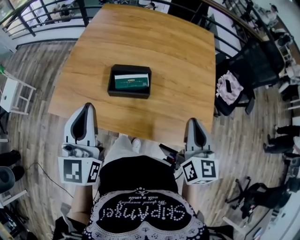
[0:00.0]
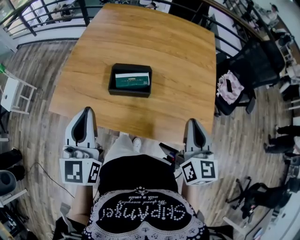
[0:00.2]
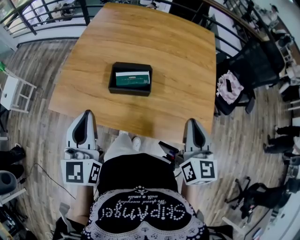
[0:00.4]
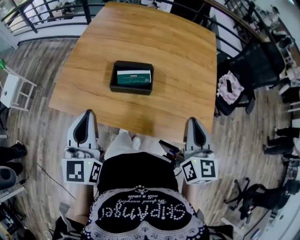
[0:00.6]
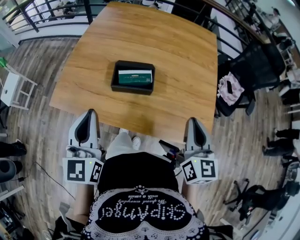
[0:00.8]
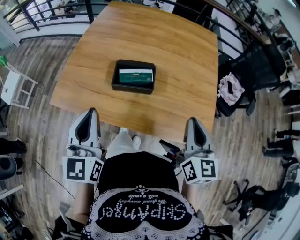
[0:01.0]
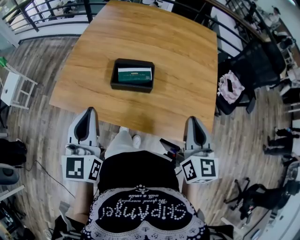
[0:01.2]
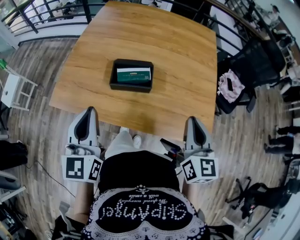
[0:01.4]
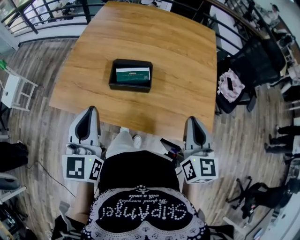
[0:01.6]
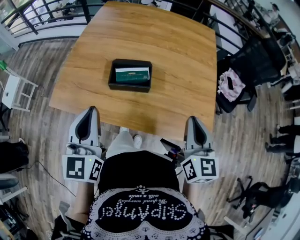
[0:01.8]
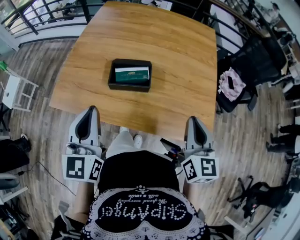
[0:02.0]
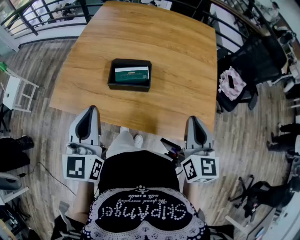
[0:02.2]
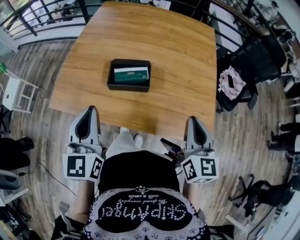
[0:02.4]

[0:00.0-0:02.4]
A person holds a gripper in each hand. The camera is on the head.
0:00.0 to 0:01.2: The left gripper ends up about 5 cm from where it was.
0:01.2 to 0:02.4: There are only small adjustments of the grippers.

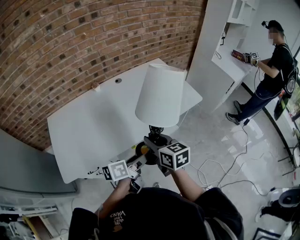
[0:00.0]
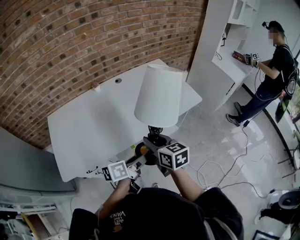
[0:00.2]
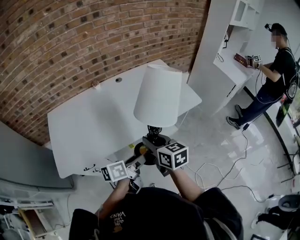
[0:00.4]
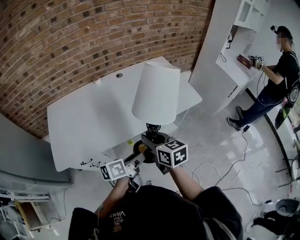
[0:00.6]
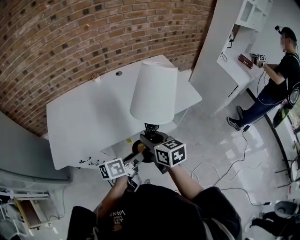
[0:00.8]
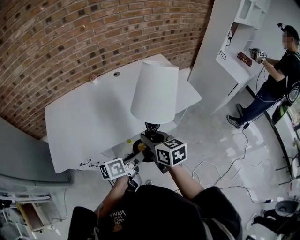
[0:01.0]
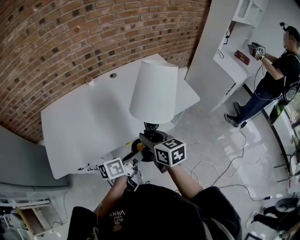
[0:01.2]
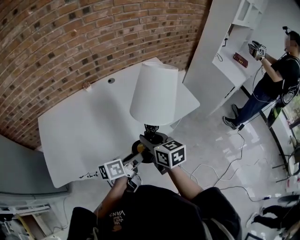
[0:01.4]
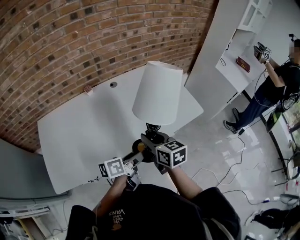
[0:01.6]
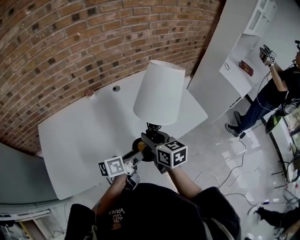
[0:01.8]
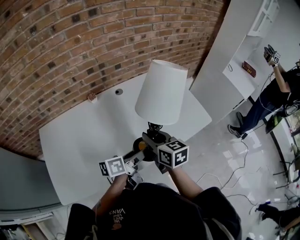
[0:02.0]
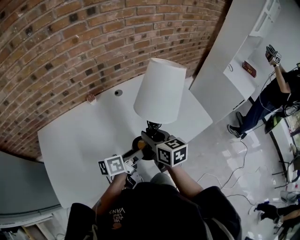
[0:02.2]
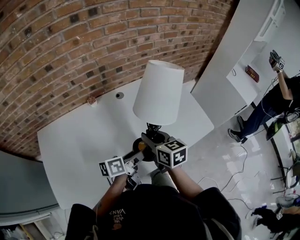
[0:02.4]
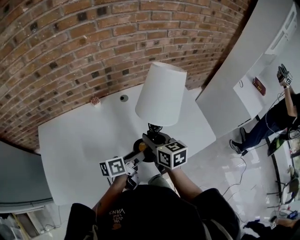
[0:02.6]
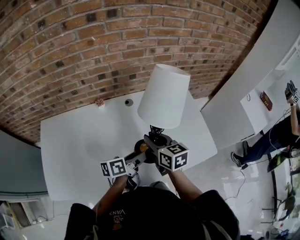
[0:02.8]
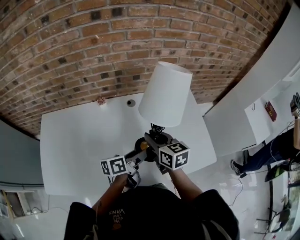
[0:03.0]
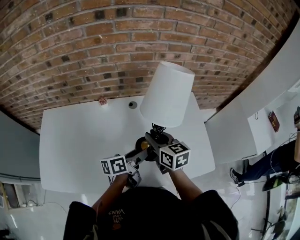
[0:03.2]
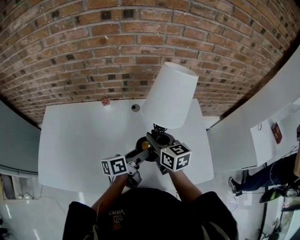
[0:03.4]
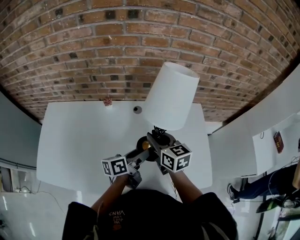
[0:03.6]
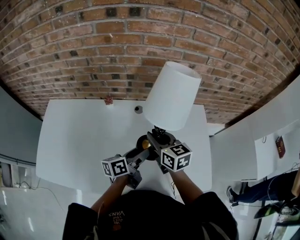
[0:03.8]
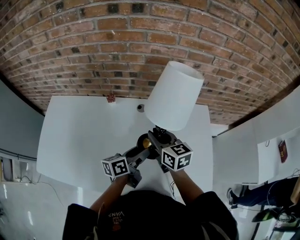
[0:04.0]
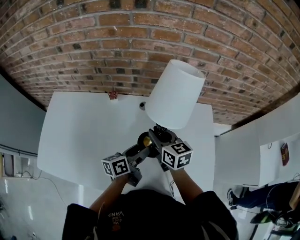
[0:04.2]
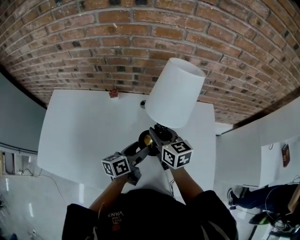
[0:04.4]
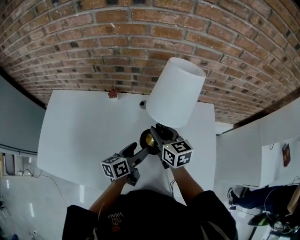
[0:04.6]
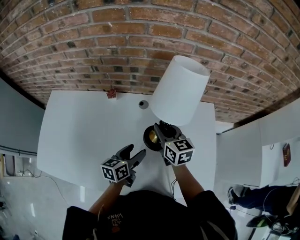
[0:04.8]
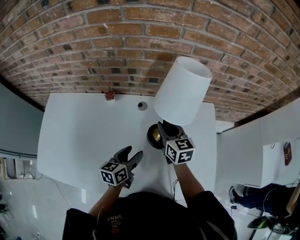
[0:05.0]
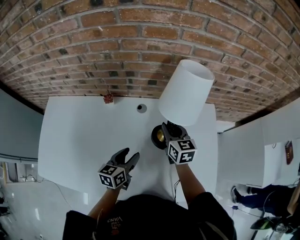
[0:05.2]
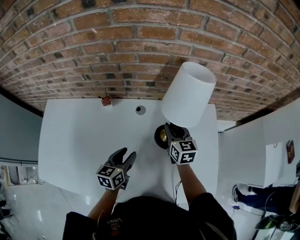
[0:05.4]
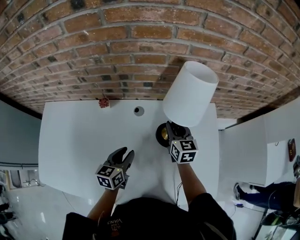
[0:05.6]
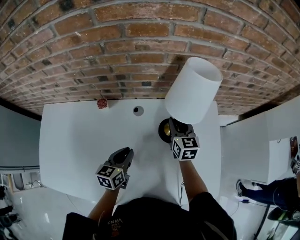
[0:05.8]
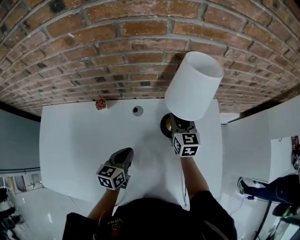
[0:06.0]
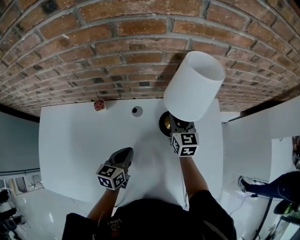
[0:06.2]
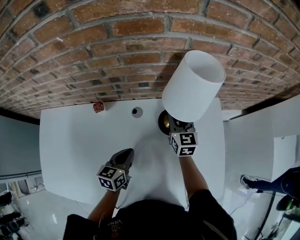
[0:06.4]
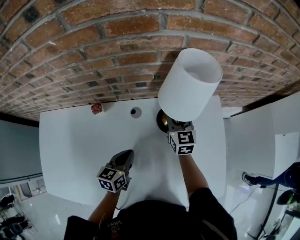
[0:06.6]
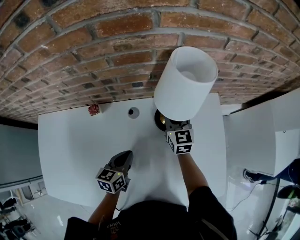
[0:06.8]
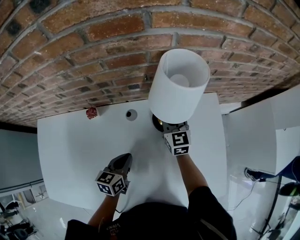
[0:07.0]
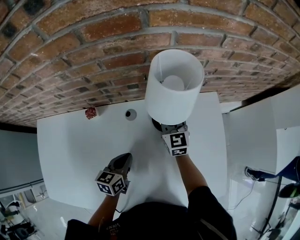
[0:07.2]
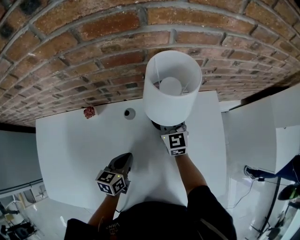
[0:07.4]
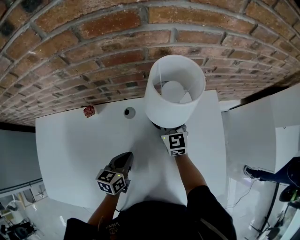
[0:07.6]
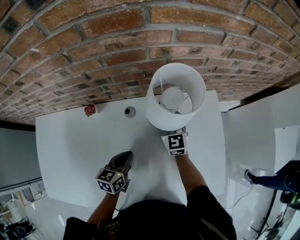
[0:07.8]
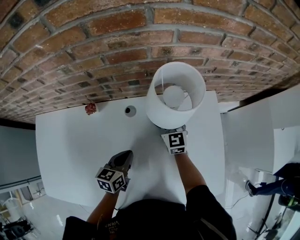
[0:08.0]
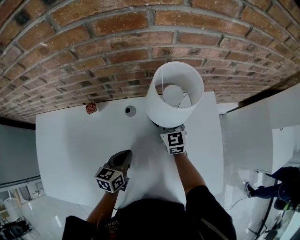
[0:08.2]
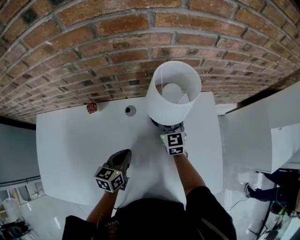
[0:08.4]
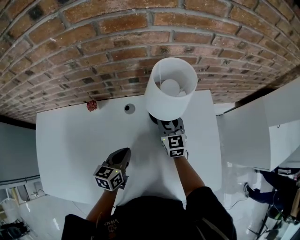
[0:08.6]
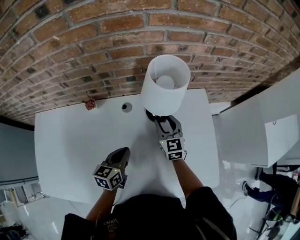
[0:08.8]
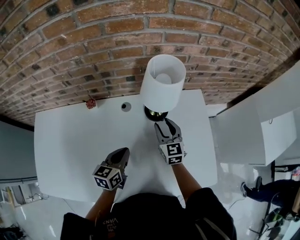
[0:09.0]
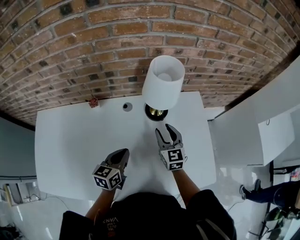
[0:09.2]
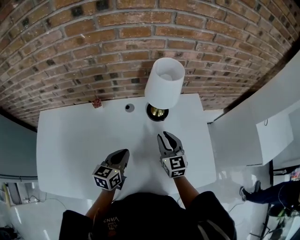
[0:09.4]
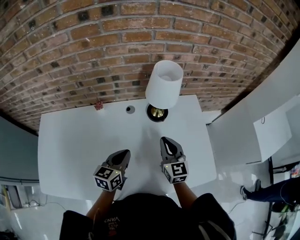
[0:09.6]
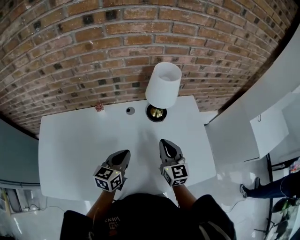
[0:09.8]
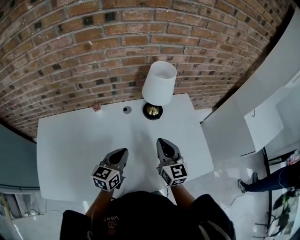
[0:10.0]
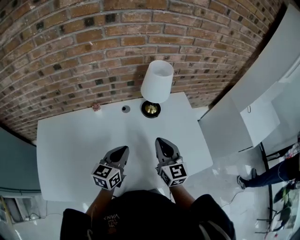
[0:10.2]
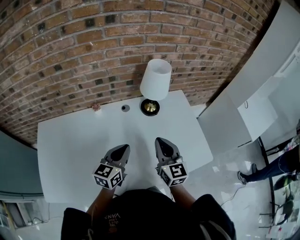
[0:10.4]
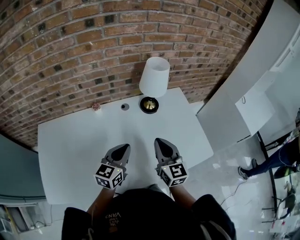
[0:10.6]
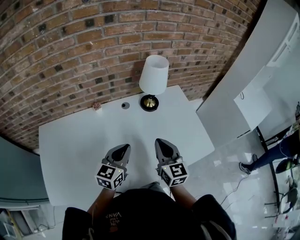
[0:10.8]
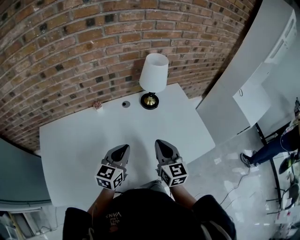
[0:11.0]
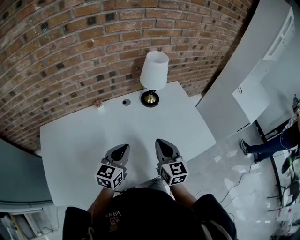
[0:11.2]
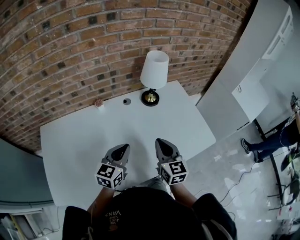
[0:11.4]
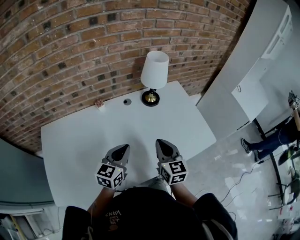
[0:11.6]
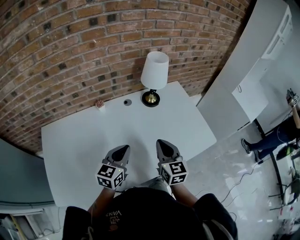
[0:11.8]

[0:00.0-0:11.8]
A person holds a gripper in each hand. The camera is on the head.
0:00.0 to 0:01.4: The grippers both shift forward by some 5 cm.
0:01.4 to 0:03.0: Both grippers travel together forward, some 30 cm.
0:03.0 to 0:04.4: The grippers both shift forward by approximately 10 cm. The left gripper turns by some 20 degrees.
0:04.4 to 0:06.0: The right gripper shifts some 20 cm forward, to the right and downward, and changes its angle by about 30 degrees. Meanwhile the left gripper heads forward and downward, covering some 10 cm, turns by some 30 degrees, and closes its fingers.
0:06.0 to 0:07.4: The grippers stay close to where they were, moving slightly.
0:07.4 to 0:08.8: The right gripper is displaced backward by roughly 10 cm. The left gripper shifts by approximately 5 cm.
0:08.8 to 0:10.4: The right gripper is displaced backward and upward by some 30 cm, and closes. Meanwhile the left gripper heads upward and backward, covering approximately 15 cm, and swivels about 20 degrees.
0:10.4 to 0:11.8: Both grippers move backward, some 10 cm.

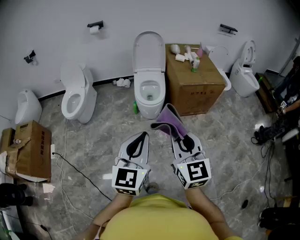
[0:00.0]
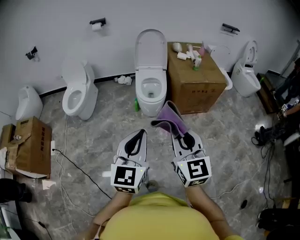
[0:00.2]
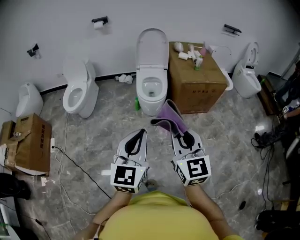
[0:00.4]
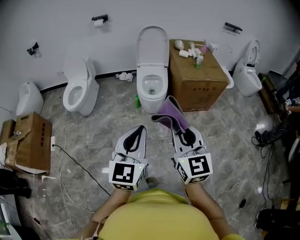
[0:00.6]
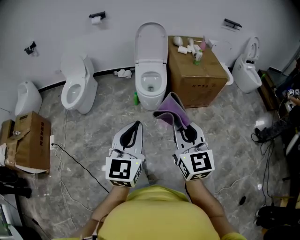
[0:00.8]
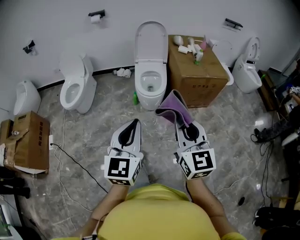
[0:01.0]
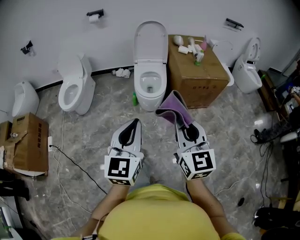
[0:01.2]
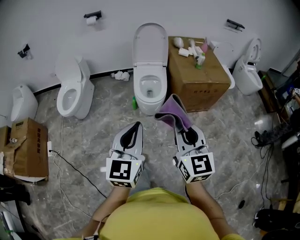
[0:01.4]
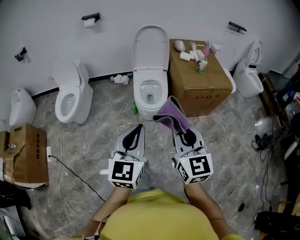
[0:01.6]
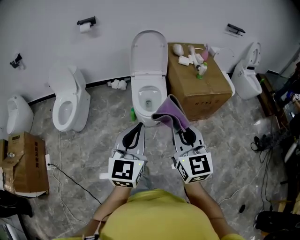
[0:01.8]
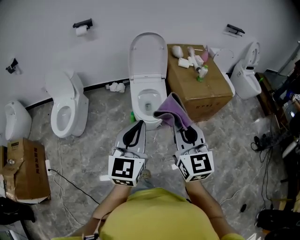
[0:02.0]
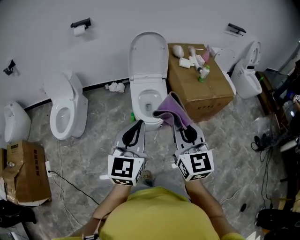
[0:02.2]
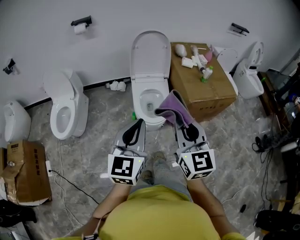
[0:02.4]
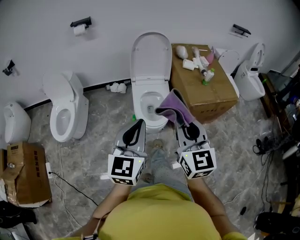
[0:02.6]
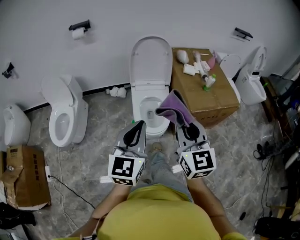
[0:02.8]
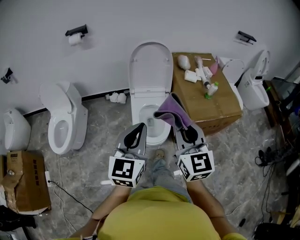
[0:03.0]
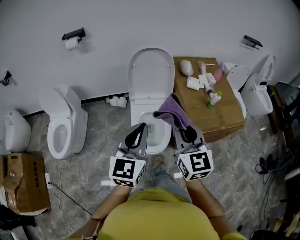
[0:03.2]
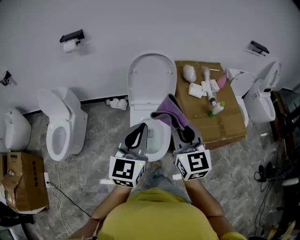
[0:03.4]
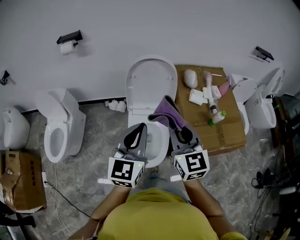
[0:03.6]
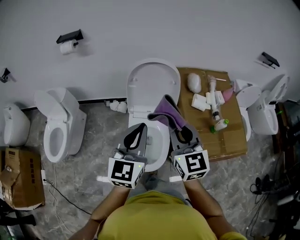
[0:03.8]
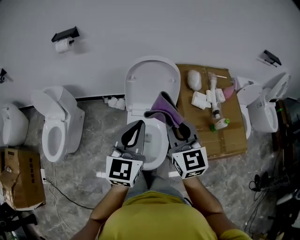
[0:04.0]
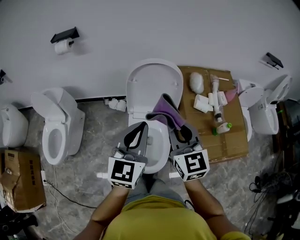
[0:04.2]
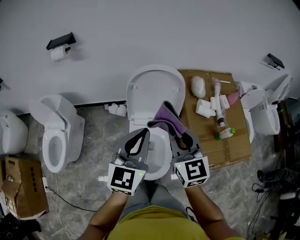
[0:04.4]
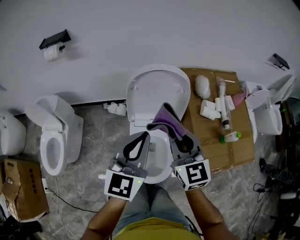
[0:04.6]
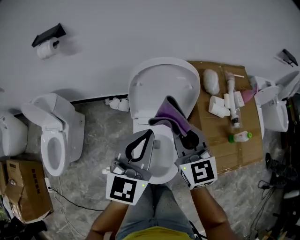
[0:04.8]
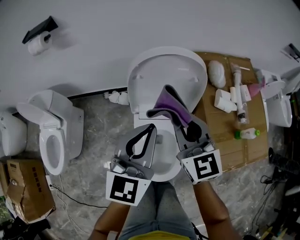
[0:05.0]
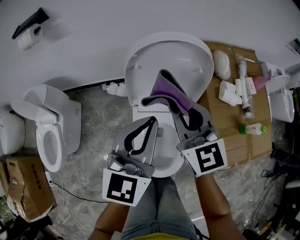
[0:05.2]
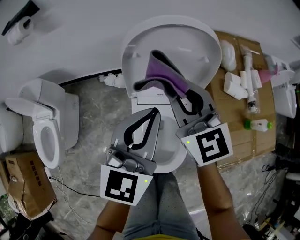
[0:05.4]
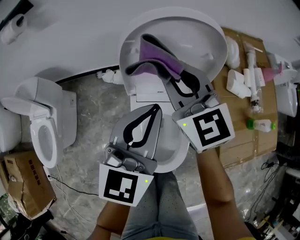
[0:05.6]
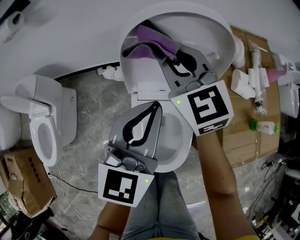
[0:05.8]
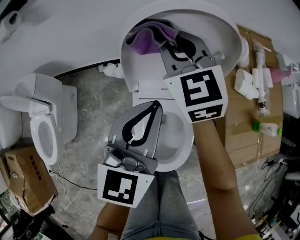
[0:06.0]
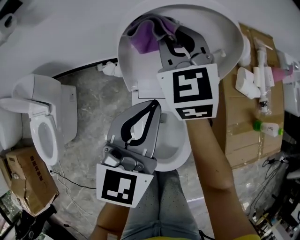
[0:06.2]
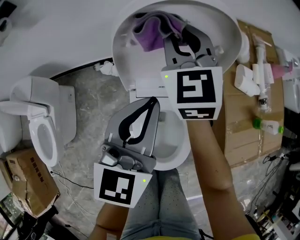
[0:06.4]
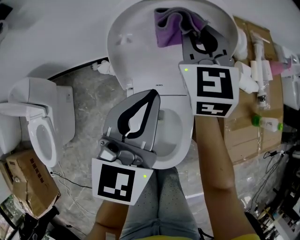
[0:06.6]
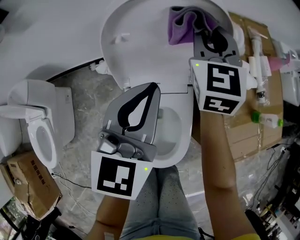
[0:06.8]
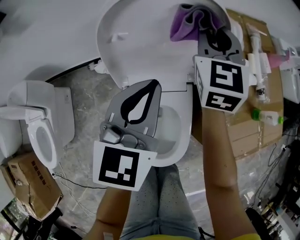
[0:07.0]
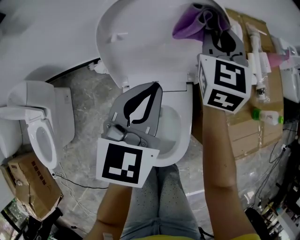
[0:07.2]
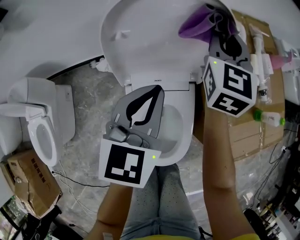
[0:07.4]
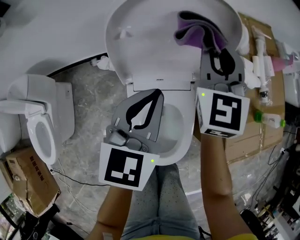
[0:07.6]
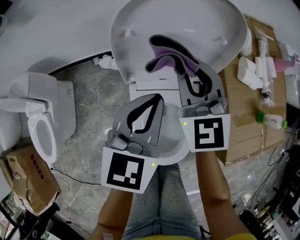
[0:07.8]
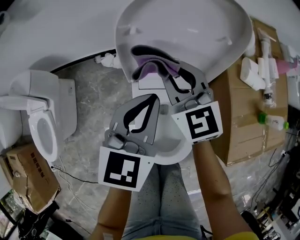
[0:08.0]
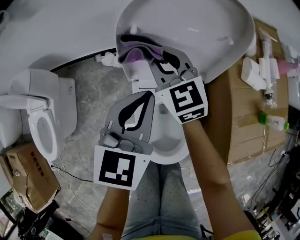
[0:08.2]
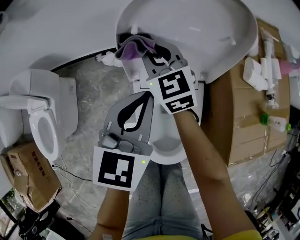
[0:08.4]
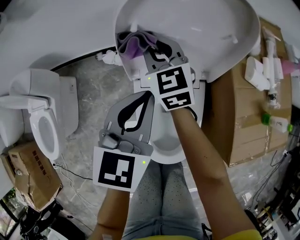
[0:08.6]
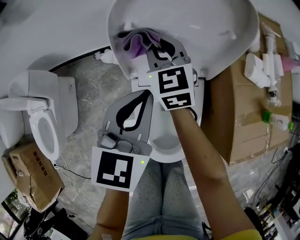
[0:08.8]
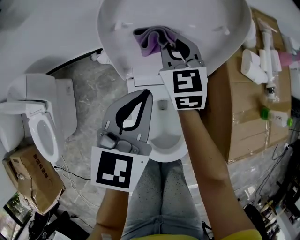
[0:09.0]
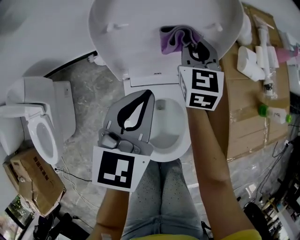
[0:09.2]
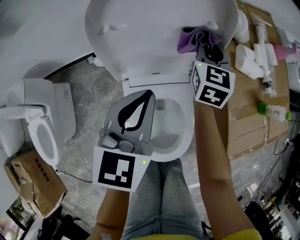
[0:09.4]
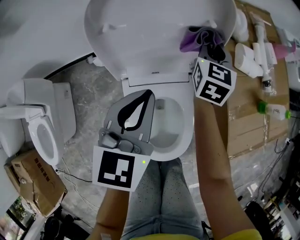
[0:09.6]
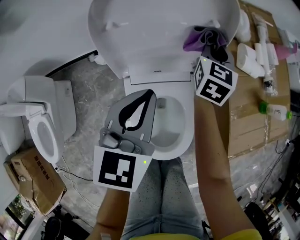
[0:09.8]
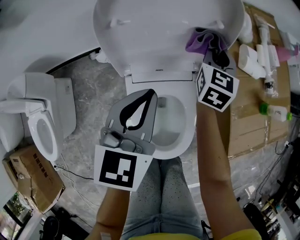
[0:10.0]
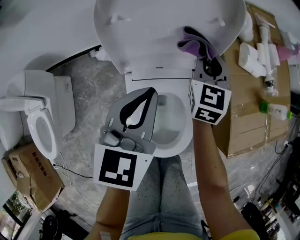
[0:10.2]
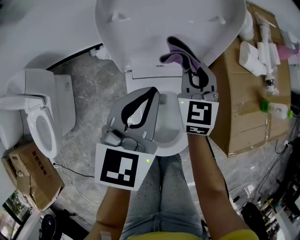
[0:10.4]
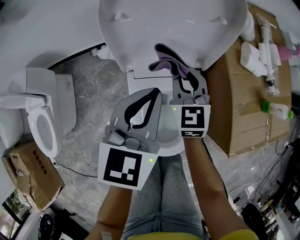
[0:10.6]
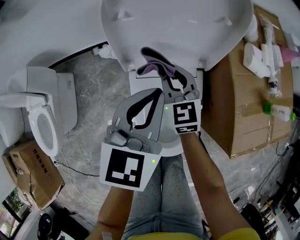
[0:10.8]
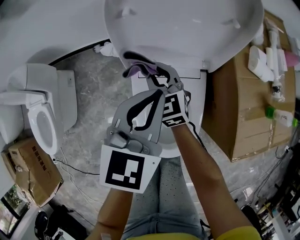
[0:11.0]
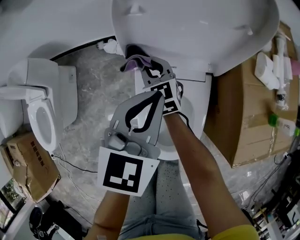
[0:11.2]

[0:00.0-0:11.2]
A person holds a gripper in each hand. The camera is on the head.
0:00.0 to 0:01.6: The two grippers go roughly 15 cm forward.
0:01.6 to 0:03.2: The two grippers go approximately 40 cm forward.
0:03.2 to 0:04.8: Both grippers travel together forward, roughly 30 cm.
0:04.8 to 0:06.4: The left gripper shifts about 15 cm downward and forward; the right gripper is displaced forward and downward by roughly 25 cm.
0:06.4 to 0:08.0: The right gripper goes about 15 cm backward and downward, and goes to the right and returns, some 15 cm each way. The left gripper is displaced downward by some 5 cm.
0:08.0 to 0:09.6: The right gripper changes place by about 20 cm, and turns by roughly 40 degrees.
0:09.6 to 0:11.2: The right gripper shifts by approximately 30 cm, and rotates approximately 40 degrees.
